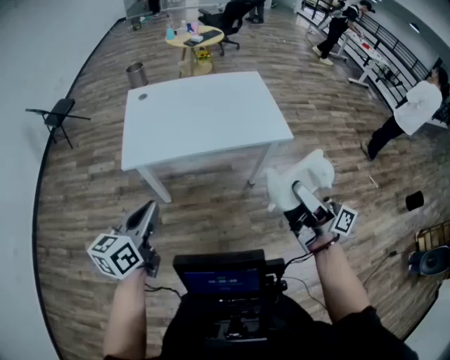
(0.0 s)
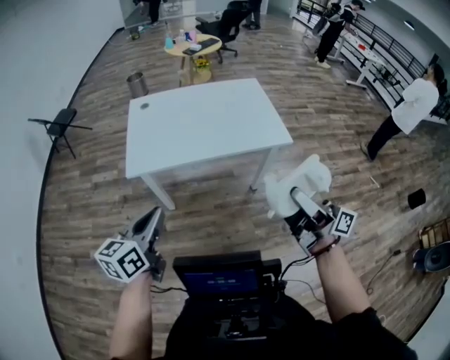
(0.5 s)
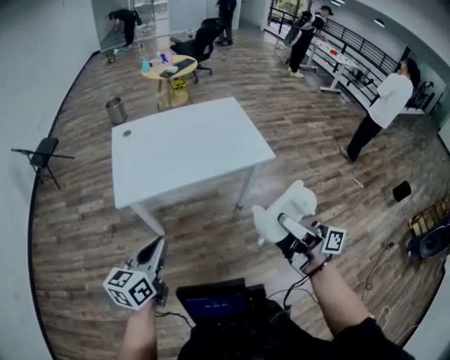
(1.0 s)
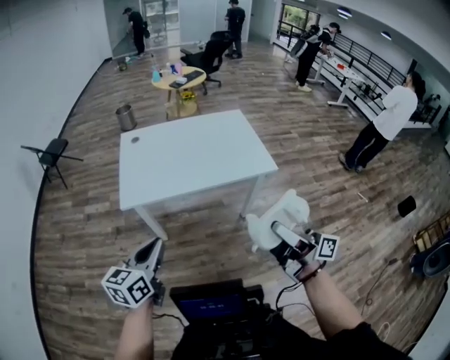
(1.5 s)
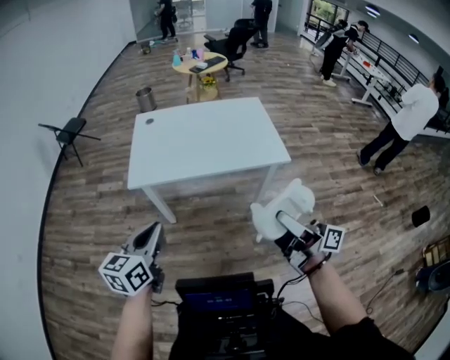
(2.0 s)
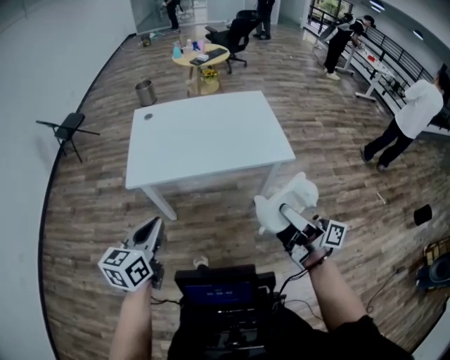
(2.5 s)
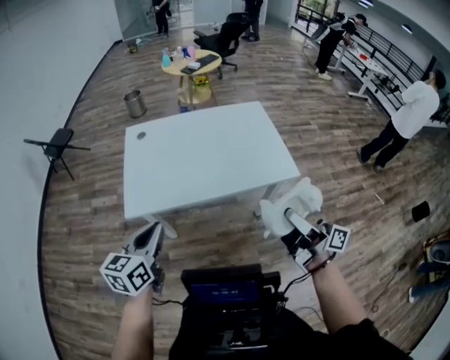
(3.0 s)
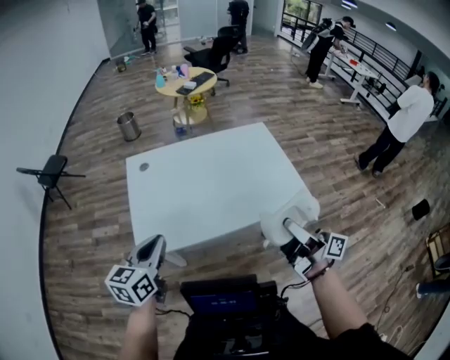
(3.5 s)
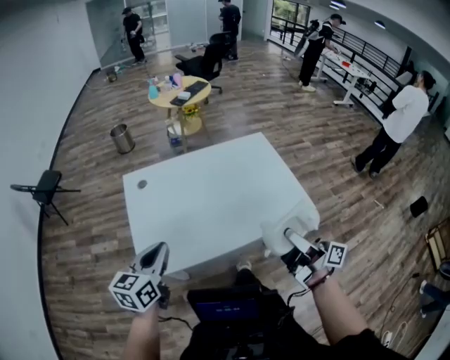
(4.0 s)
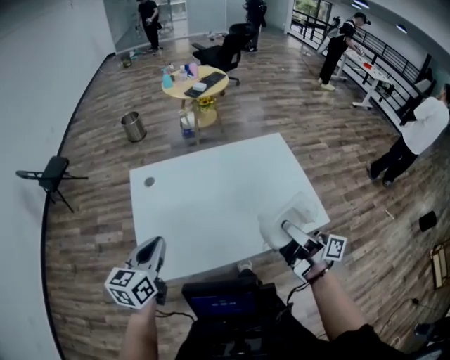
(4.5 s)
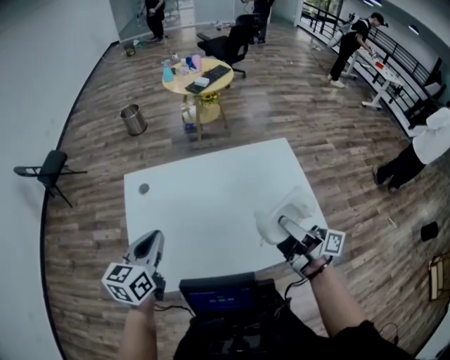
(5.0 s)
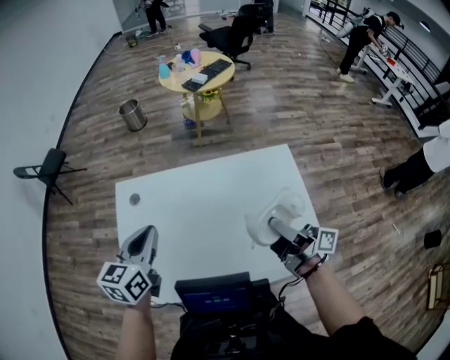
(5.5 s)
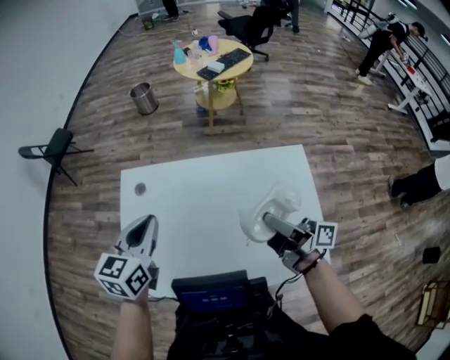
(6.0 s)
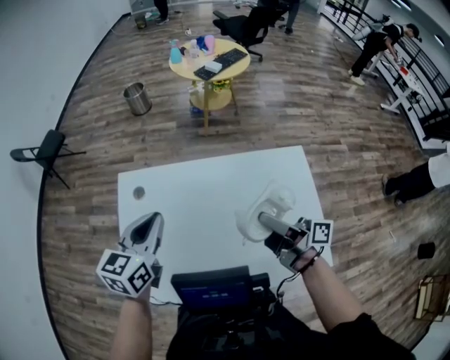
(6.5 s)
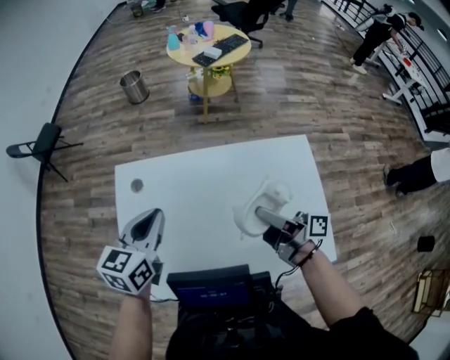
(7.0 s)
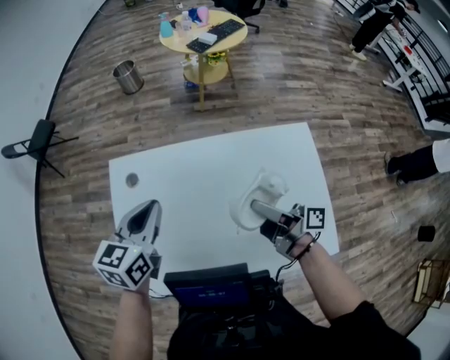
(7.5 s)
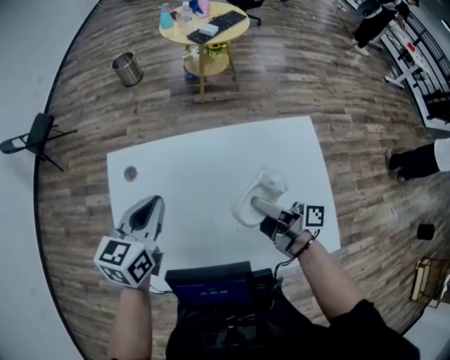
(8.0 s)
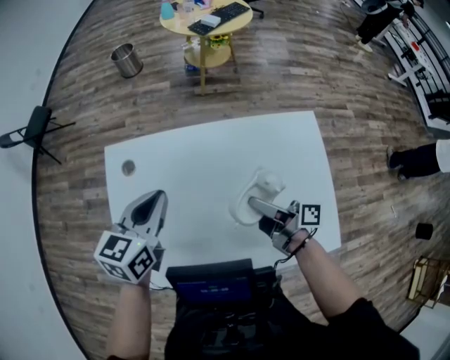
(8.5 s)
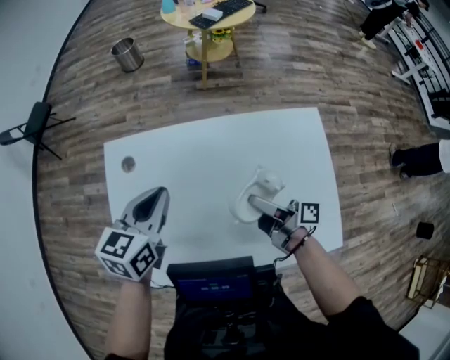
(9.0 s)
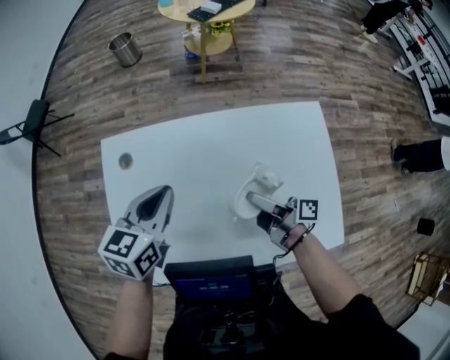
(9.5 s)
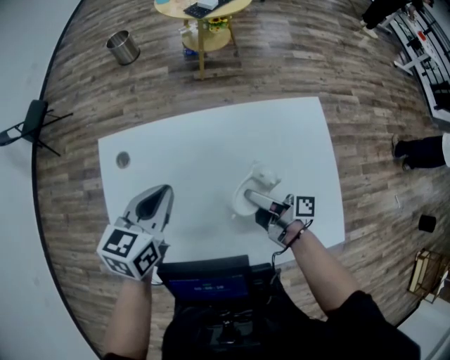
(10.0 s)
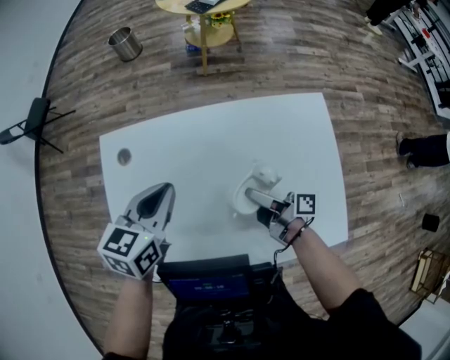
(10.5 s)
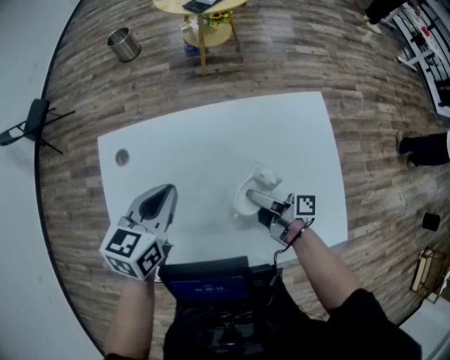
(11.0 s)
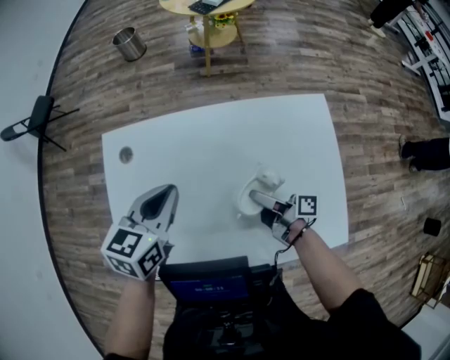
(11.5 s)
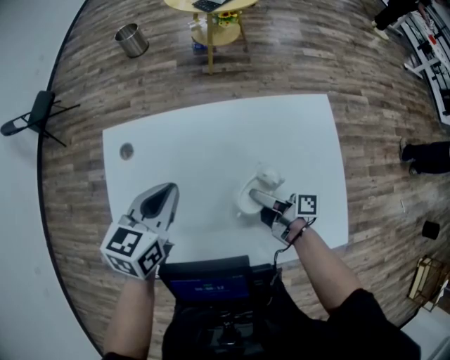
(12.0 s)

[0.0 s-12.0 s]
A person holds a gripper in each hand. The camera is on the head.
2.0 to 4.0 s: The left gripper moves about 35 cm.
4.0 to 6.0 s: The left gripper ends up roughly 30 cm from where it was.
6.0 to 8.0 s: The left gripper is displaced downward by some 5 cm.
8.0 to 10.0 s: The left gripper changes place by about 5 cm.

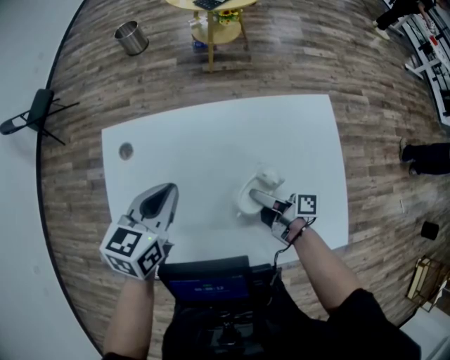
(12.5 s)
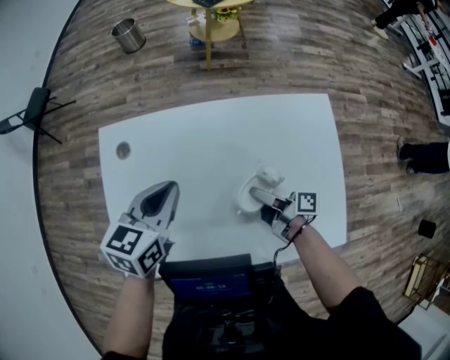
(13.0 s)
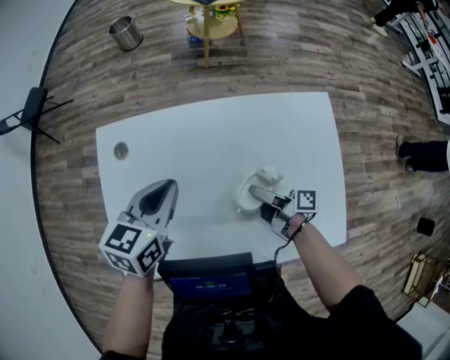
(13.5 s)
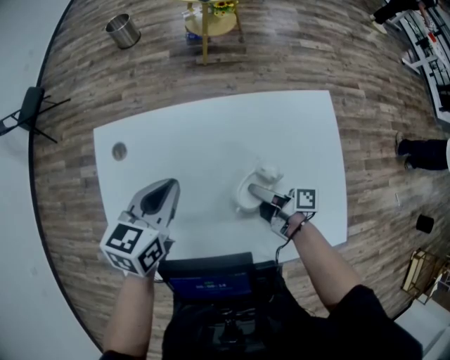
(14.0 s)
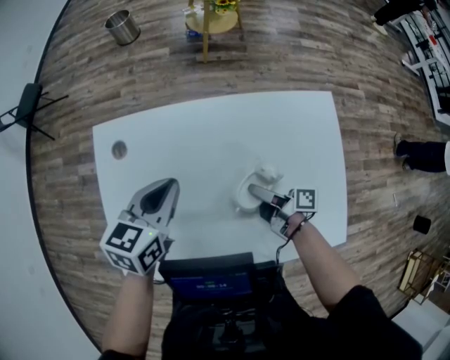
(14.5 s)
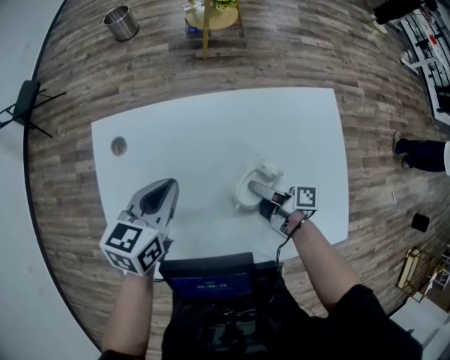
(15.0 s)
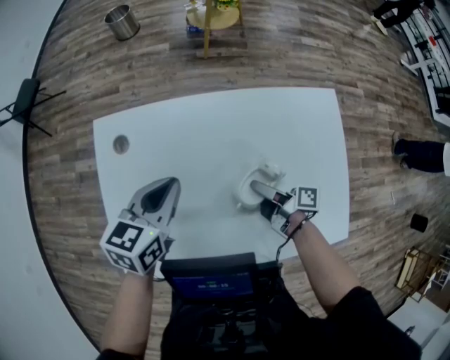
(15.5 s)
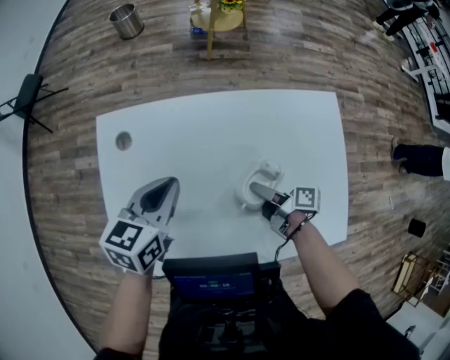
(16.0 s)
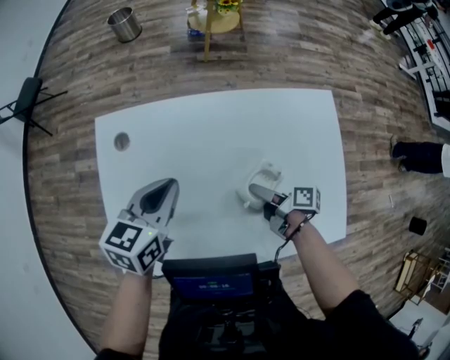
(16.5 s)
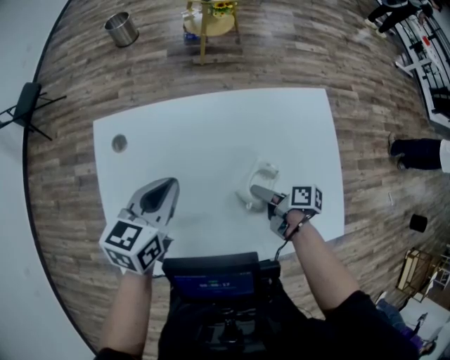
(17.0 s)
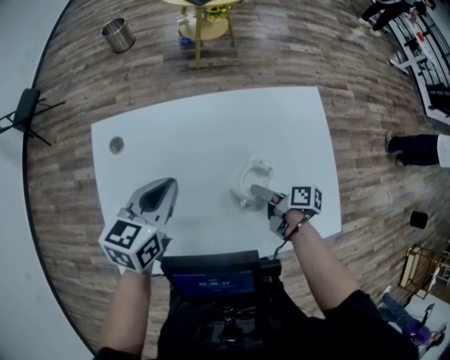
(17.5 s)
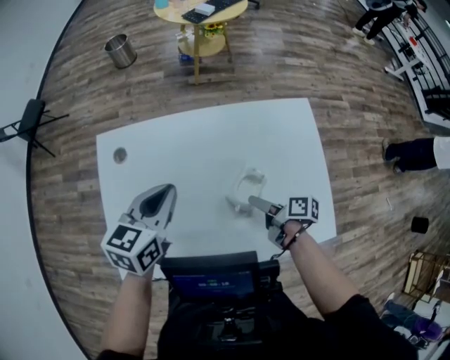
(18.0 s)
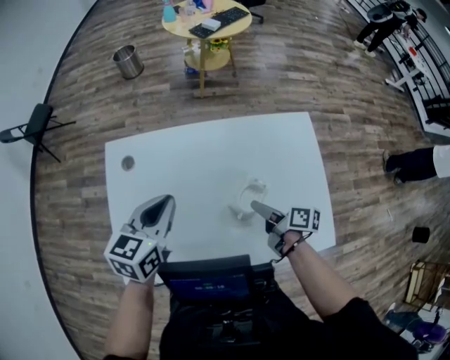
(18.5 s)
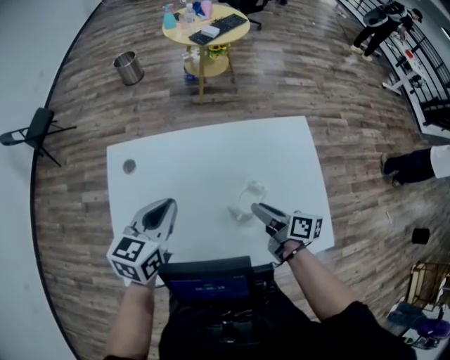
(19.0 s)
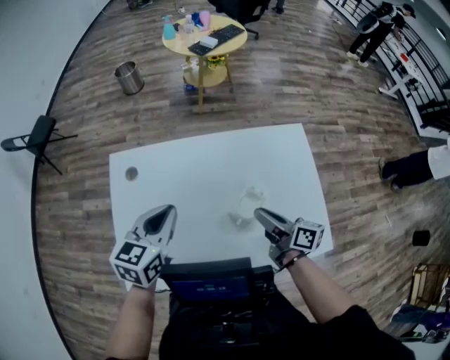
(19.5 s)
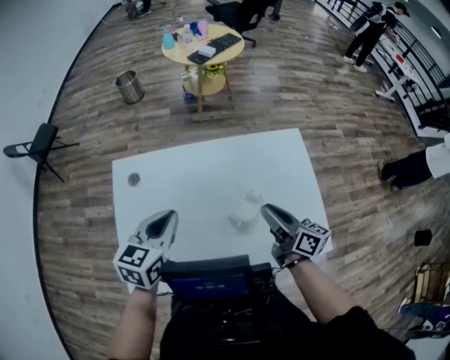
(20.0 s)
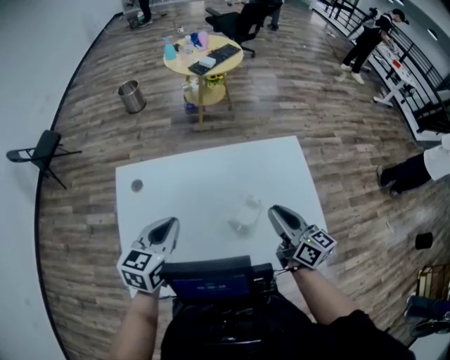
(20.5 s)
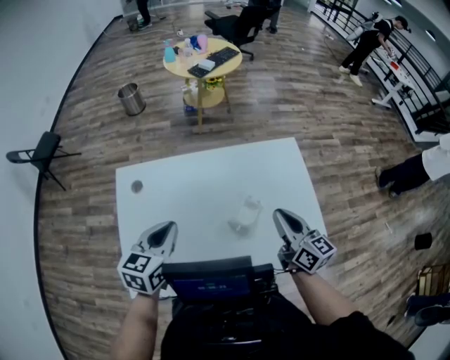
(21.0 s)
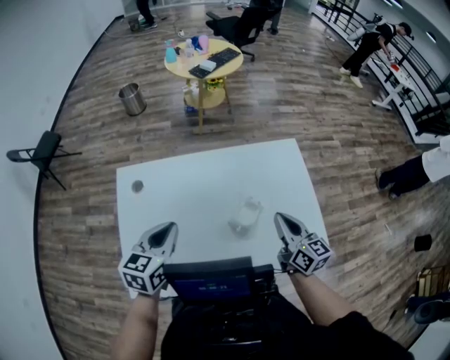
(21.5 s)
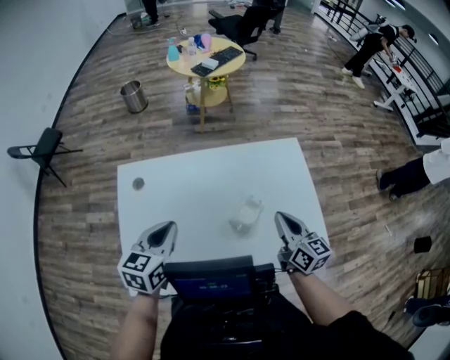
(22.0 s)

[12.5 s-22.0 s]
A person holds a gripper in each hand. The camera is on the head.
18.0 to 20.0 s: The left gripper changes place by about 5 cm.

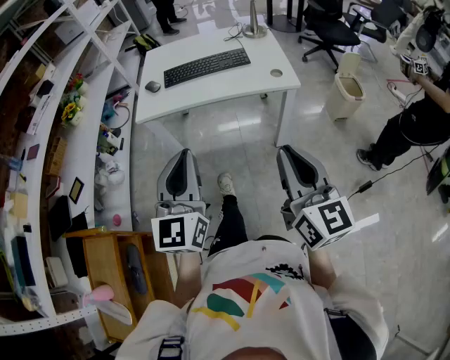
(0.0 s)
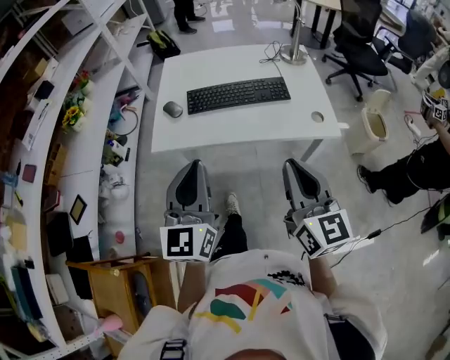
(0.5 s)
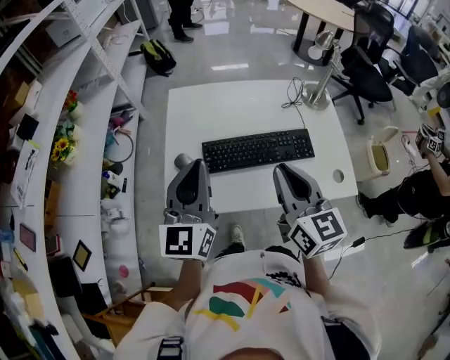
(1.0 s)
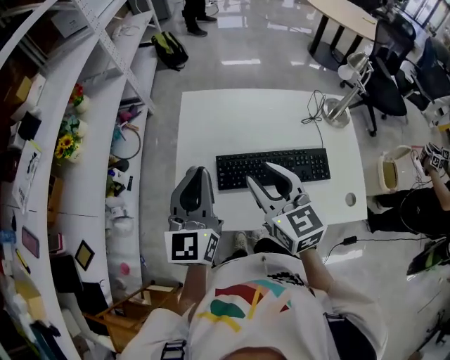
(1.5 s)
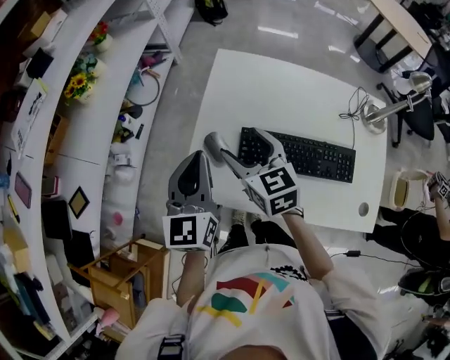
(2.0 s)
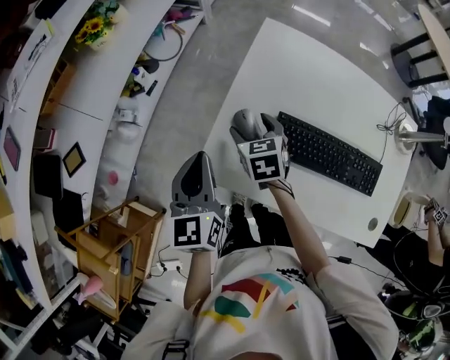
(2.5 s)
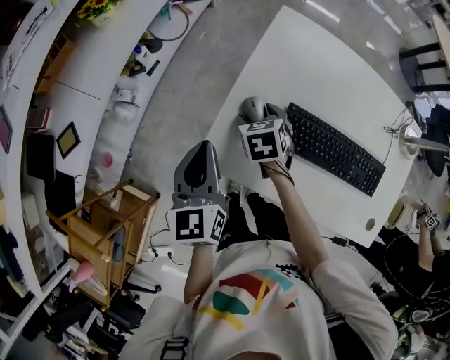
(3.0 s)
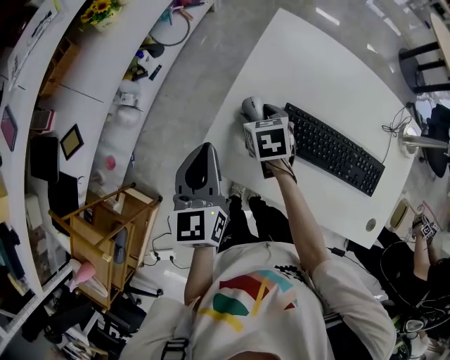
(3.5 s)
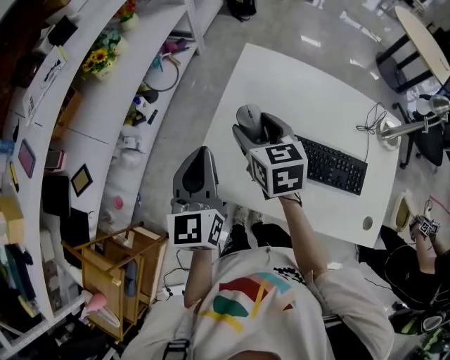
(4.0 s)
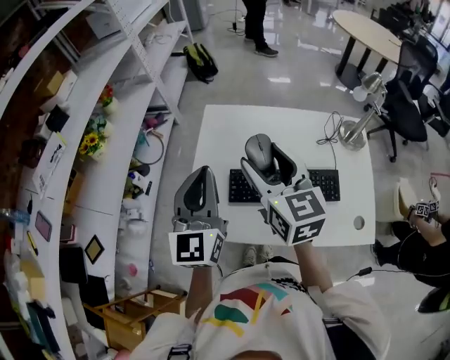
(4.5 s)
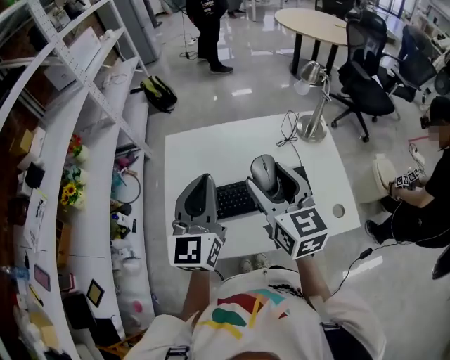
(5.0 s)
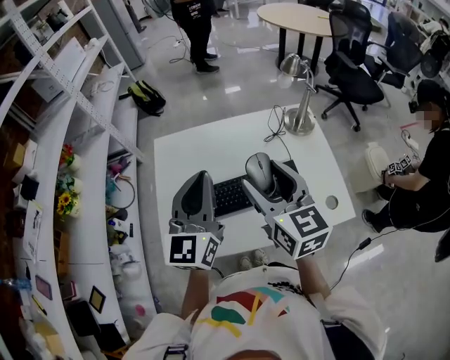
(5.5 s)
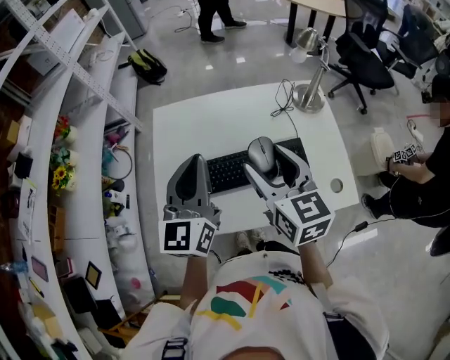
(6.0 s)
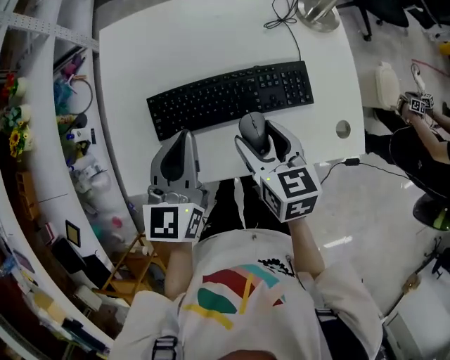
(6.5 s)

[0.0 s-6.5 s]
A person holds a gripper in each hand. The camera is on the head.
0.0 to 2.0 s: The pair of grippers is taken forward, some 70 cm. The left gripper swivels roughly 20 degrees, while the right gripper changes its angle by approximately 40 degrees, and opens its fingers.
2.0 to 4.5 s: The grippers both shift upward and to the right by approximately 15 cm. The right gripper turns by roughly 20 degrees.
4.5 to 6.5 s: Both grippers travel together downward and to the right, some 25 cm. The left gripper turns by approximately 30 degrees. The right gripper rotates approximately 30 degrees.
